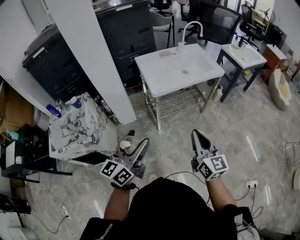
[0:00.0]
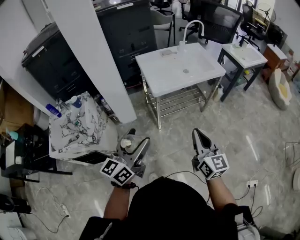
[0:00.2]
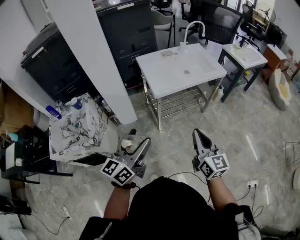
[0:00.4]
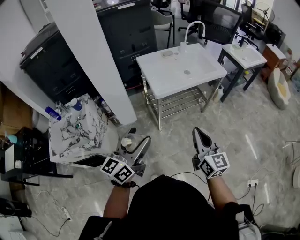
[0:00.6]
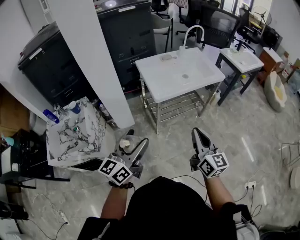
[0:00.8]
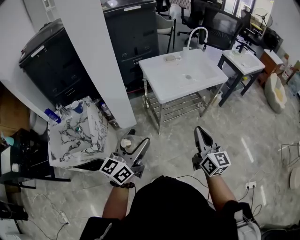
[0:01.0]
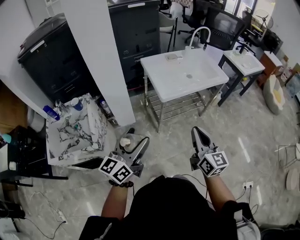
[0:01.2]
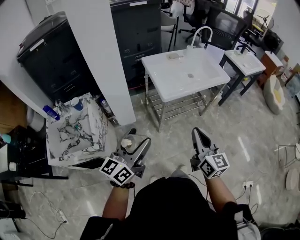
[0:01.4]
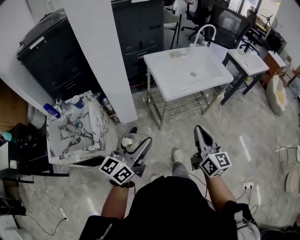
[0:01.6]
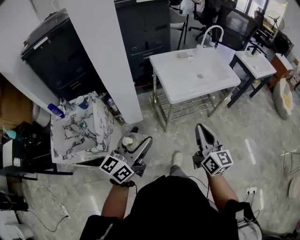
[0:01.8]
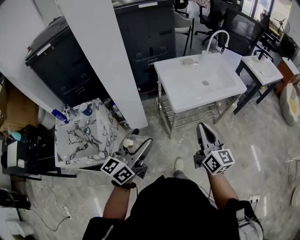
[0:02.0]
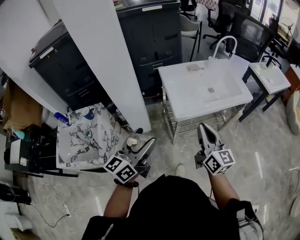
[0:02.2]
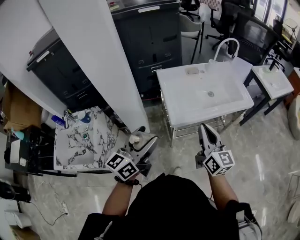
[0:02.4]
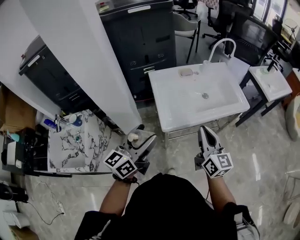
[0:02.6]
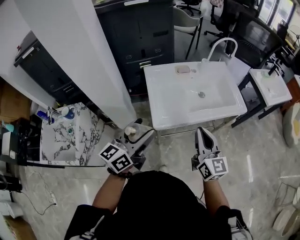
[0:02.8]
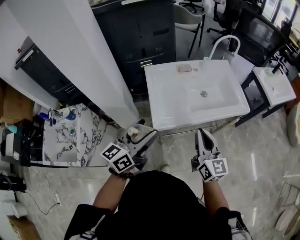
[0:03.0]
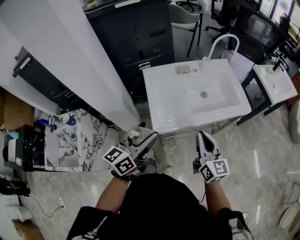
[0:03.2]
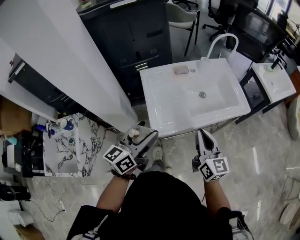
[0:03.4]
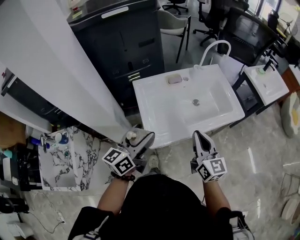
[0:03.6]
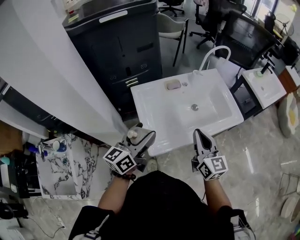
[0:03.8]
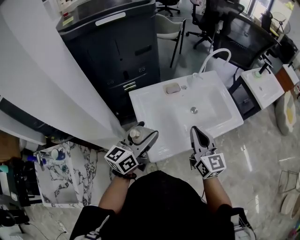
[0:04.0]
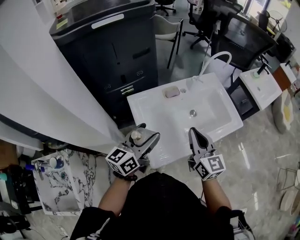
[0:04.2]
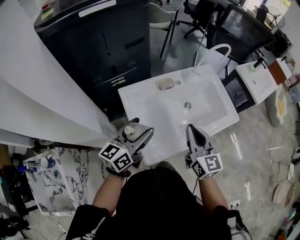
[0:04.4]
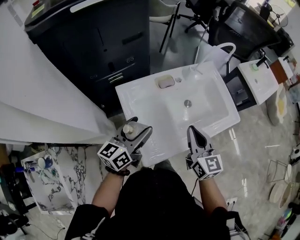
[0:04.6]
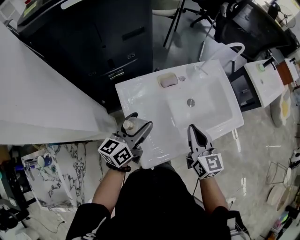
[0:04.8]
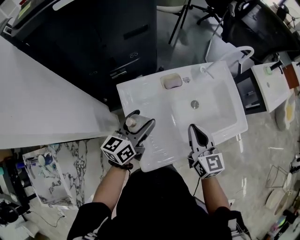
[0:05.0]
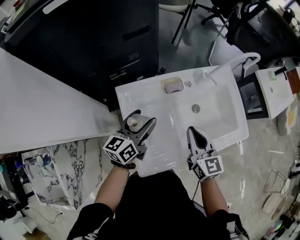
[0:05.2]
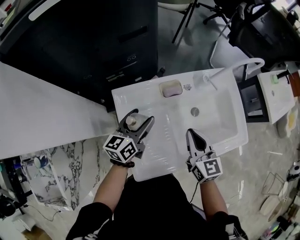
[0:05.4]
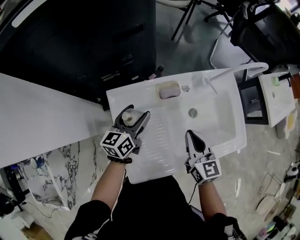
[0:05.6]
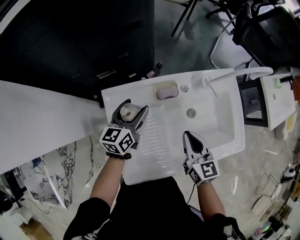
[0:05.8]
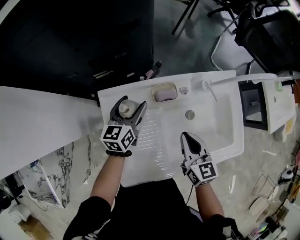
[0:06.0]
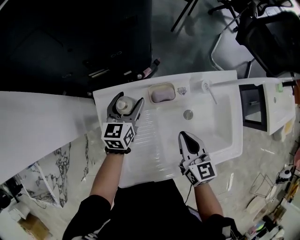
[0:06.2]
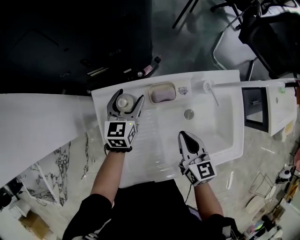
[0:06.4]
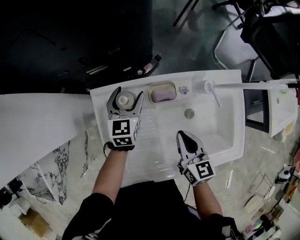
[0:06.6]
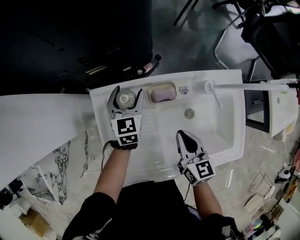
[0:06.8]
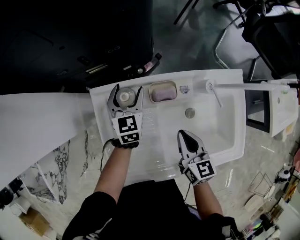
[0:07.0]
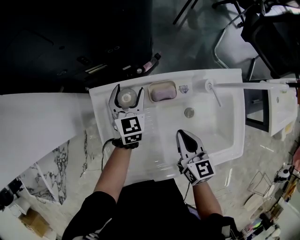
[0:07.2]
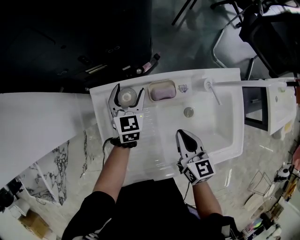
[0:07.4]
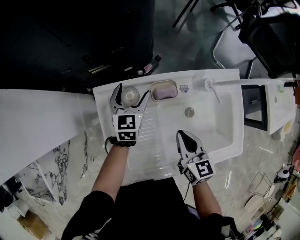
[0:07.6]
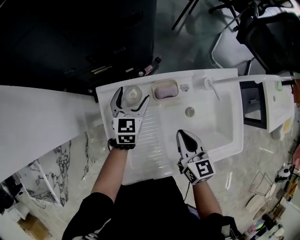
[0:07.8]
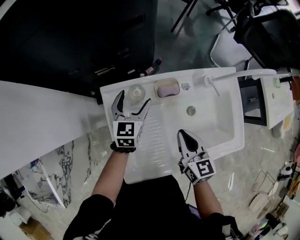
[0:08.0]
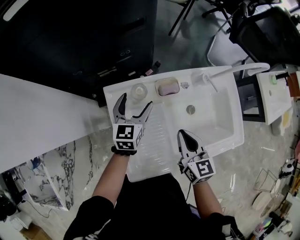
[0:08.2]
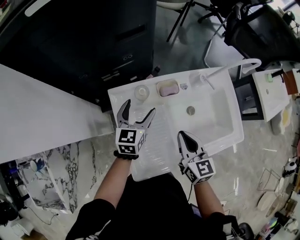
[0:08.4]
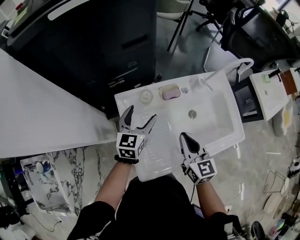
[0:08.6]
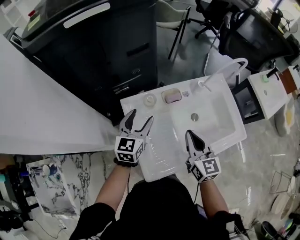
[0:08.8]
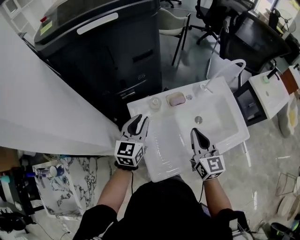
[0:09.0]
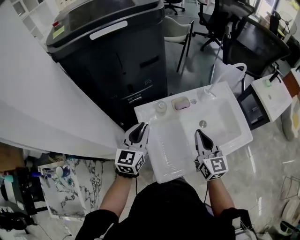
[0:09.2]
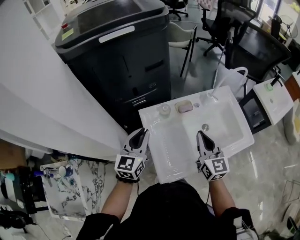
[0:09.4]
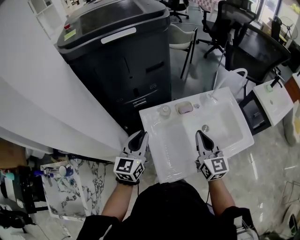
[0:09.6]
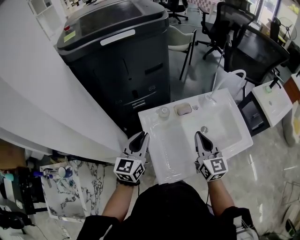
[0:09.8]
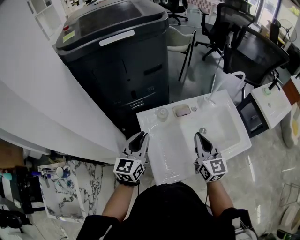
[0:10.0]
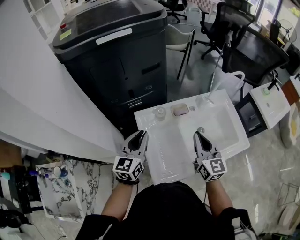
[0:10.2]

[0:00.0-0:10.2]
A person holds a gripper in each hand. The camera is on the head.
0:00.0 to 0:01.4: The right gripper shifts some 10 cm to the left and forward. The left gripper goes some 10 cm to the left.
0:01.4 to 0:03.0: The left gripper is displaced forward and to the right by about 30 cm. Meanwhile the right gripper goes some 25 cm forward.
0:03.0 to 0:04.4: The grippers both shift forward by roughly 20 cm.
0:04.4 to 0:05.8: The left gripper travels forward and downward by some 25 cm, and turns by roughly 30 degrees, while the right gripper heads downward and forward, covering some 20 cm, and rotates approximately 20 degrees.
0:05.8 to 0:07.2: The left gripper shifts approximately 10 cm forward and downward, and rotates about 40 degrees.
0:07.2 to 0:08.8: The left gripper is displaced upward and backward by some 20 cm, and turns by some 30 degrees, while the right gripper shifts some 15 cm upward, backward and to the left, and rotates some 20 degrees.
0:08.8 to 0:10.2: The left gripper is displaced upward and backward by approximately 10 cm, and closes; the right gripper changes place by some 5 cm.

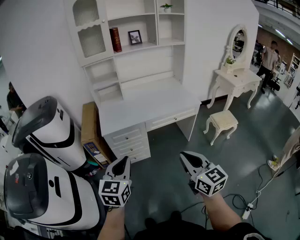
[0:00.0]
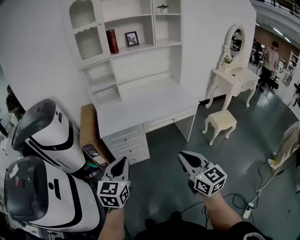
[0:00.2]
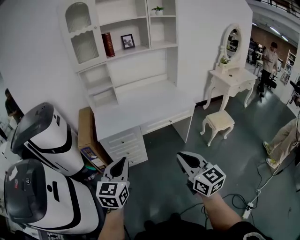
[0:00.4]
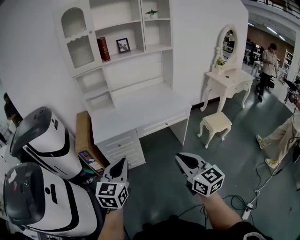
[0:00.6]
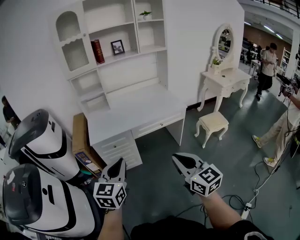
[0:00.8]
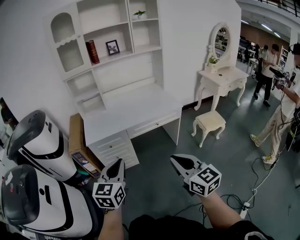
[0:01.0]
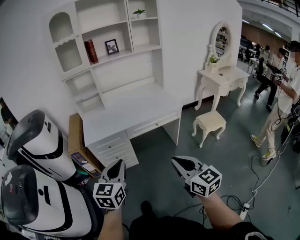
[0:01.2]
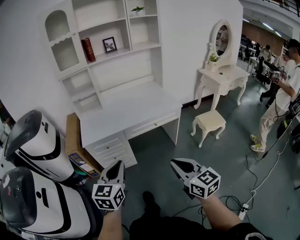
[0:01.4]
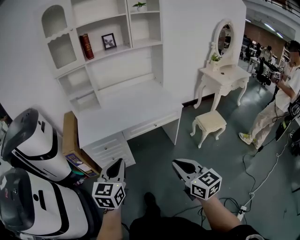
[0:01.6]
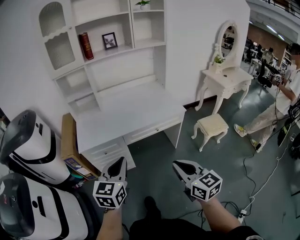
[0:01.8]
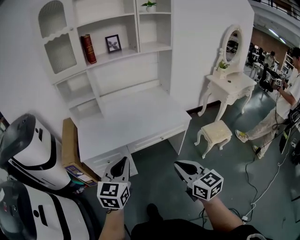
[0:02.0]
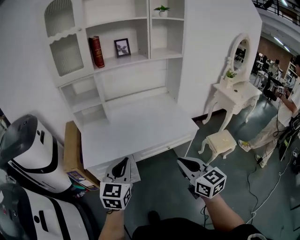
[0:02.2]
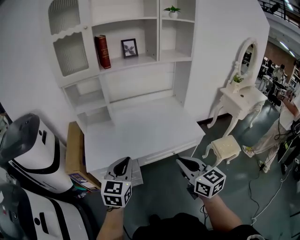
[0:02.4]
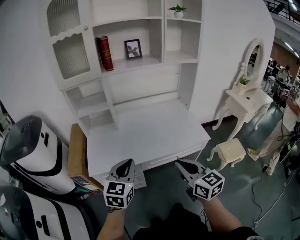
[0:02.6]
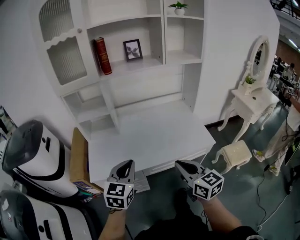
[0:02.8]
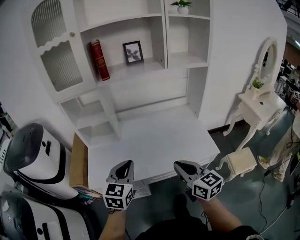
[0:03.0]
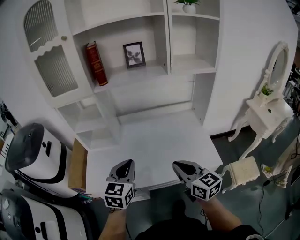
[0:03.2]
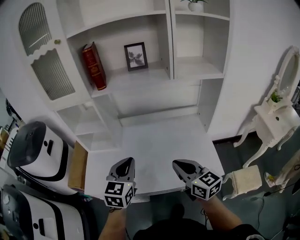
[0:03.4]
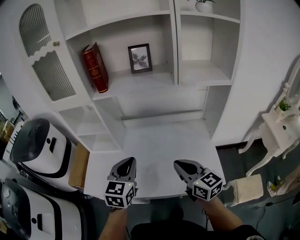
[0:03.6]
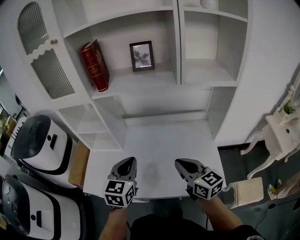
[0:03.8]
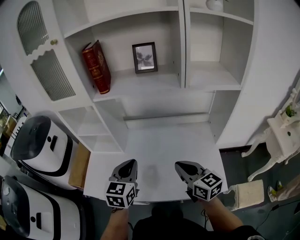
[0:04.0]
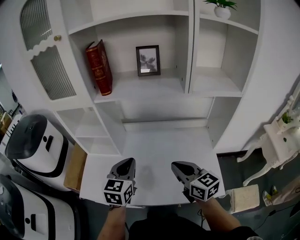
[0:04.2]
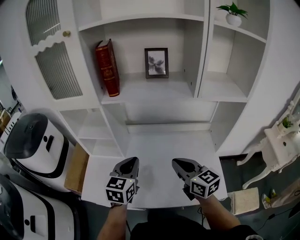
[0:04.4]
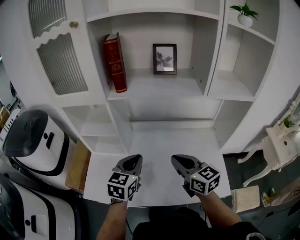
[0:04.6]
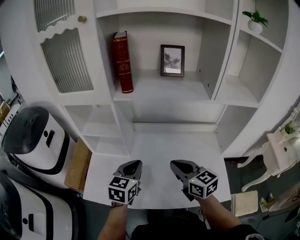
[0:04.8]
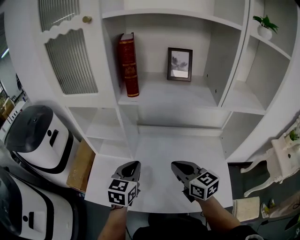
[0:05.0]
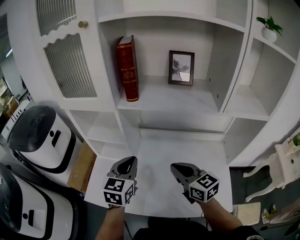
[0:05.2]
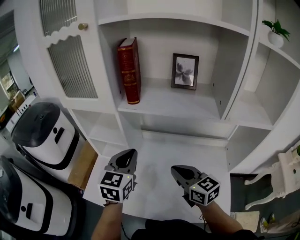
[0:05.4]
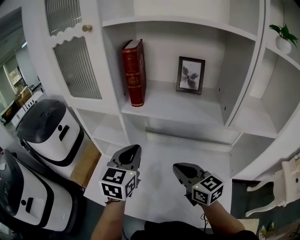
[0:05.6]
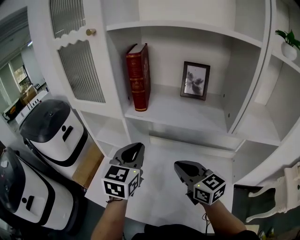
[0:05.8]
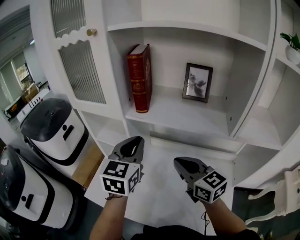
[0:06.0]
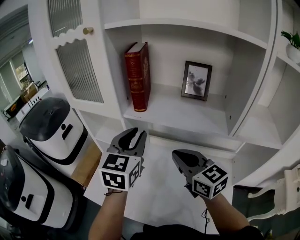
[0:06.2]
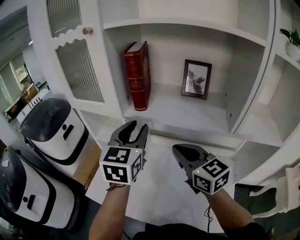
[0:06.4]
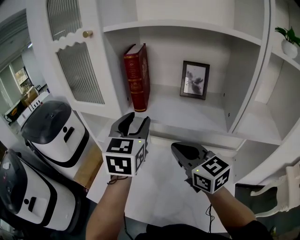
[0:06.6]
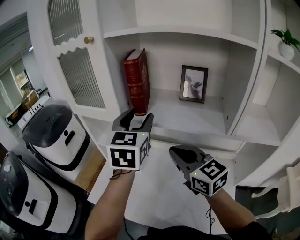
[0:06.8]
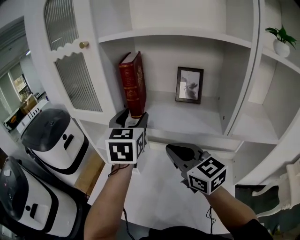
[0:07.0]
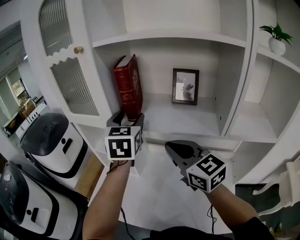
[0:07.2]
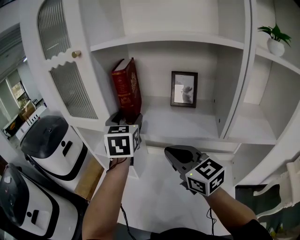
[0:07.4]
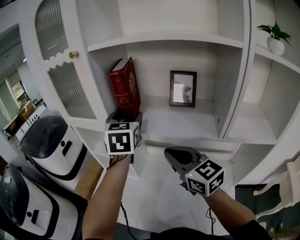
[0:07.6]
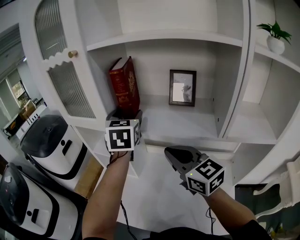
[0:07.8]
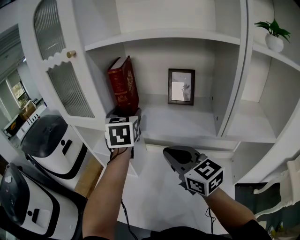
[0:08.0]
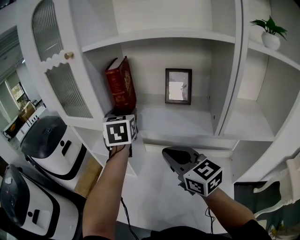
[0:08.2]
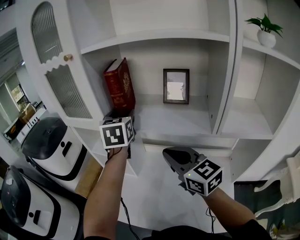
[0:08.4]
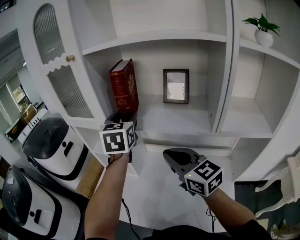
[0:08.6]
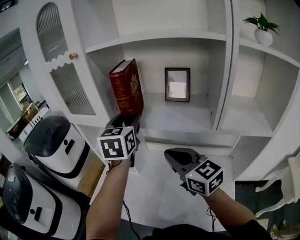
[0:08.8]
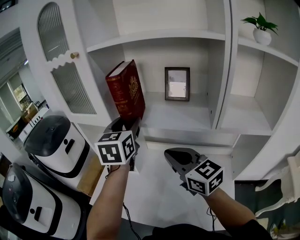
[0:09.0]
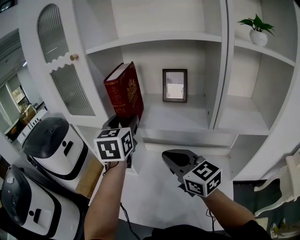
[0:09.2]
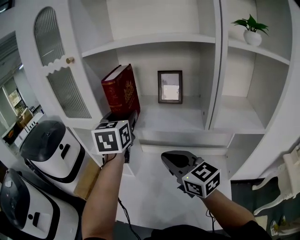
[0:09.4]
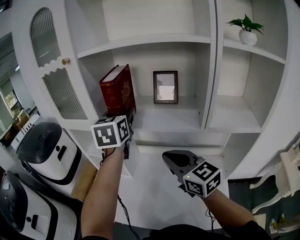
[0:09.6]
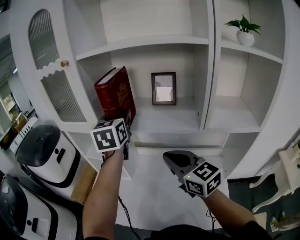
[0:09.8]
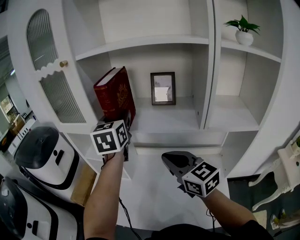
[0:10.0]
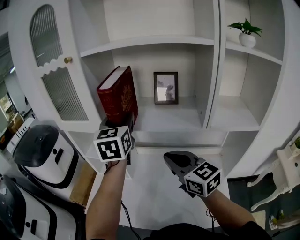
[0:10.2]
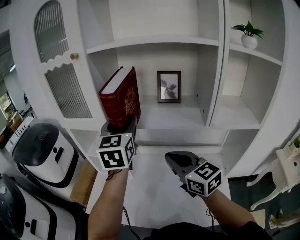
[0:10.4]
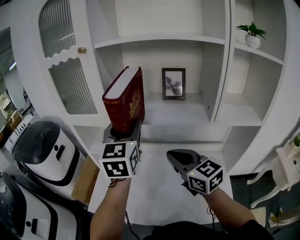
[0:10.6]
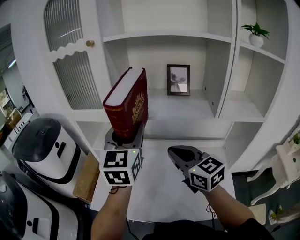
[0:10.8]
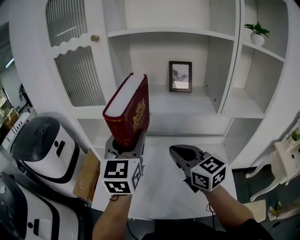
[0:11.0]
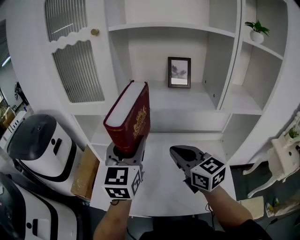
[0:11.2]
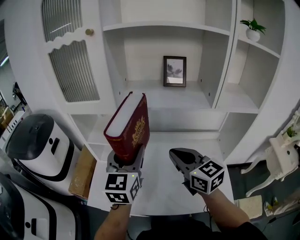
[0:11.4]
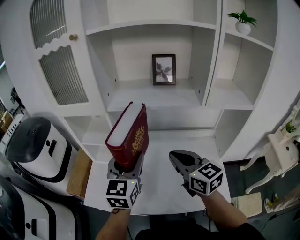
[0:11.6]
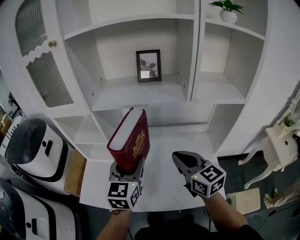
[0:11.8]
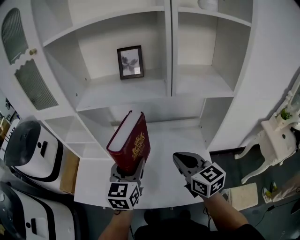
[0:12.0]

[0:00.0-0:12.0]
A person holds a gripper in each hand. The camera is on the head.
0:00.0 to 0:01.6: Both grippers travel together to the right, some 15 cm.
0:01.6 to 0:03.0: The two grippers travel together, forward, some 40 cm.
0:03.0 to 0:04.4: Both grippers travel together forward, some 25 cm.
0:04.4 to 0:06.0: The left gripper moves upward and forward, about 20 cm. Meanwhile the right gripper travels forward and upward by approximately 15 cm.
0:06.0 to 0:07.6: The left gripper goes roughly 15 cm forward and upward, and opens its fingers; the right gripper moves upward, approximately 5 cm.
0:07.6 to 0:09.0: The left gripper heads backward, covering roughly 5 cm.
0:09.0 to 0:10.4: The grippers move only a little.
0:10.4 to 0:12.0: The right gripper moves to the right, backward and downward, about 20 cm. The left gripper is displaced downward, backward and to the right by roughly 30 cm.

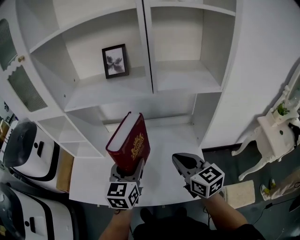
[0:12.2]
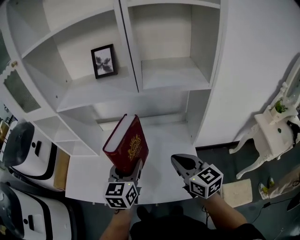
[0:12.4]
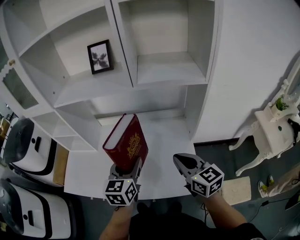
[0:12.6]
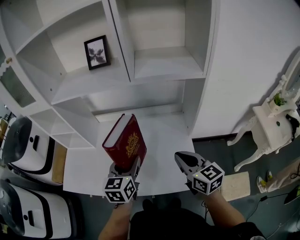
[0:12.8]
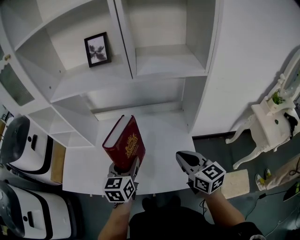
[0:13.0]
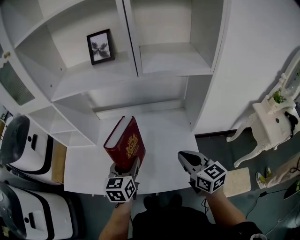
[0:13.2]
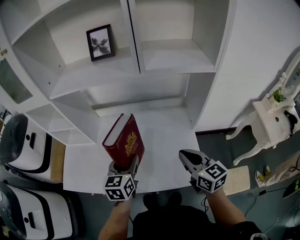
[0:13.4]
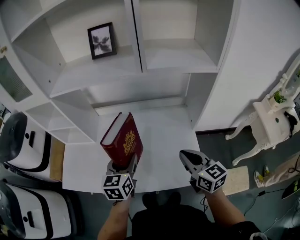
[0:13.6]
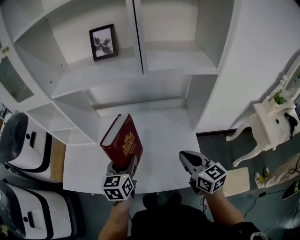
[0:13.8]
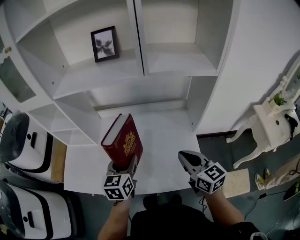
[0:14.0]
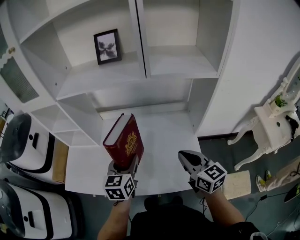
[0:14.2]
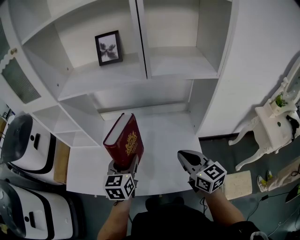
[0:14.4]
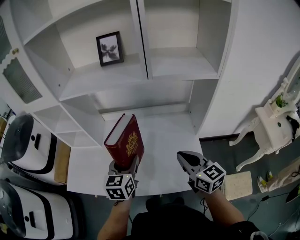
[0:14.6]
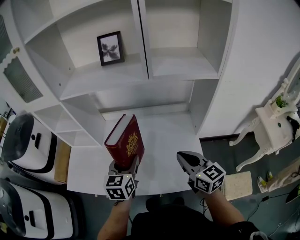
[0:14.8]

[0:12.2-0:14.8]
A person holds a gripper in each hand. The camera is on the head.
0:12.2 to 0:13.4: The right gripper travels downward and to the right by some 10 cm; the left gripper travels downward by some 10 cm.
0:13.4 to 0:14.8: There are only small adjustments of the grippers.
